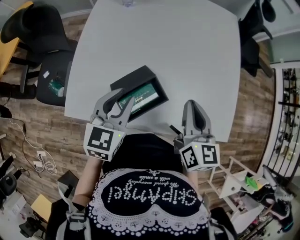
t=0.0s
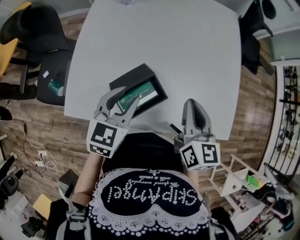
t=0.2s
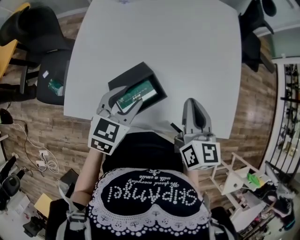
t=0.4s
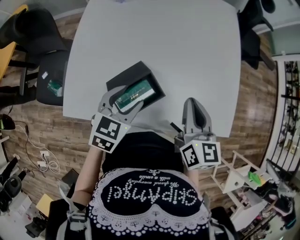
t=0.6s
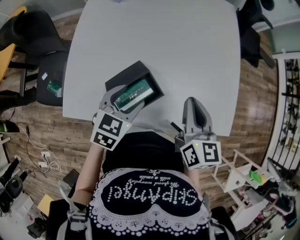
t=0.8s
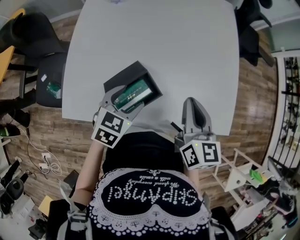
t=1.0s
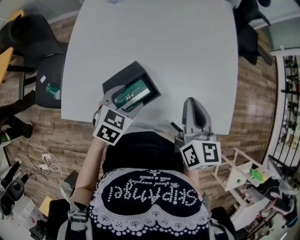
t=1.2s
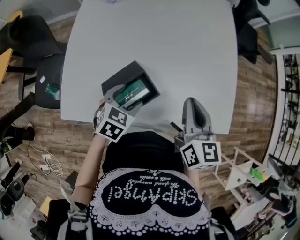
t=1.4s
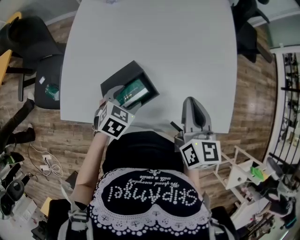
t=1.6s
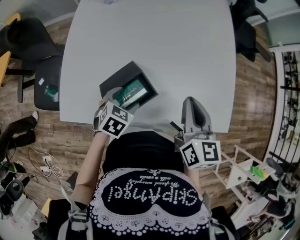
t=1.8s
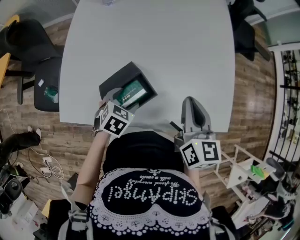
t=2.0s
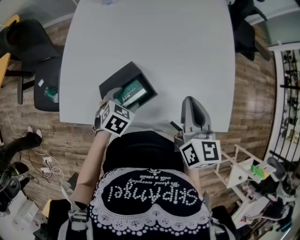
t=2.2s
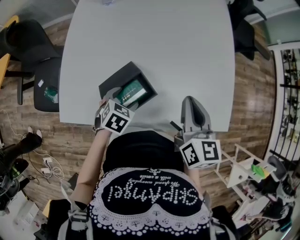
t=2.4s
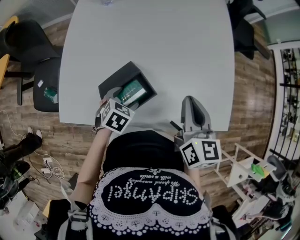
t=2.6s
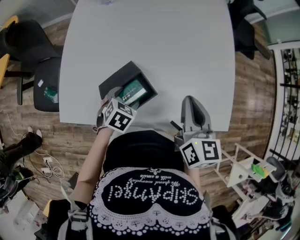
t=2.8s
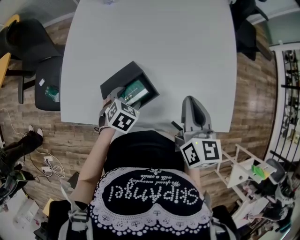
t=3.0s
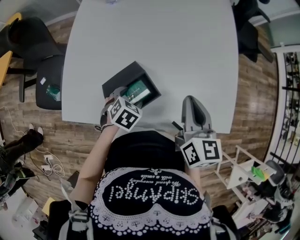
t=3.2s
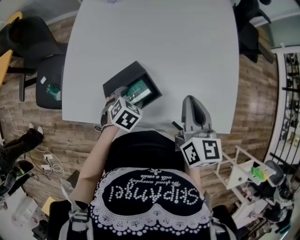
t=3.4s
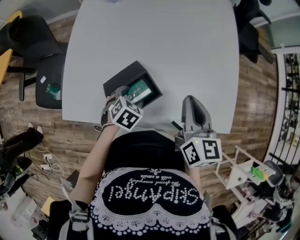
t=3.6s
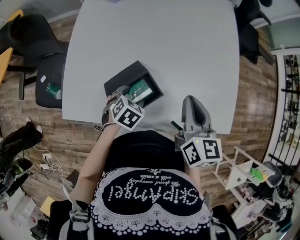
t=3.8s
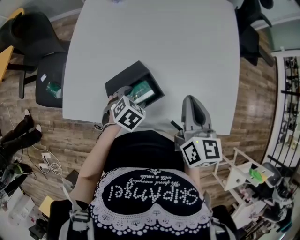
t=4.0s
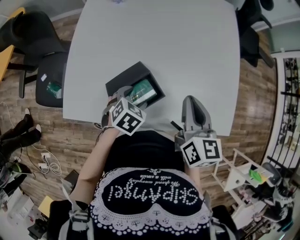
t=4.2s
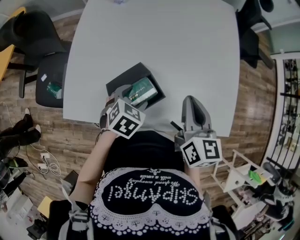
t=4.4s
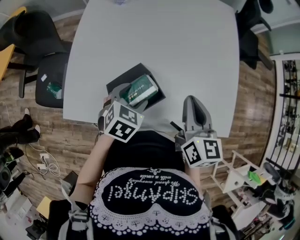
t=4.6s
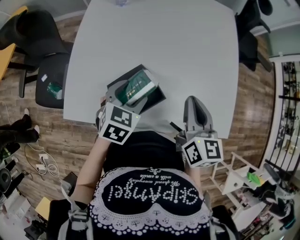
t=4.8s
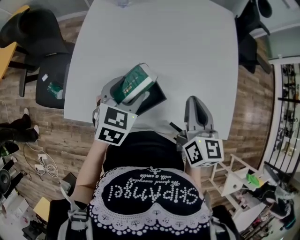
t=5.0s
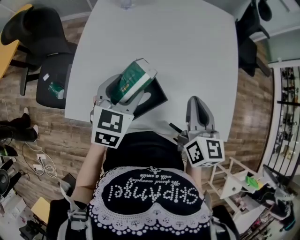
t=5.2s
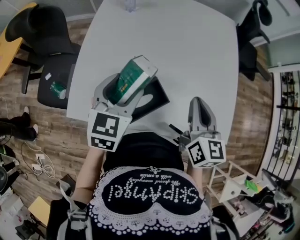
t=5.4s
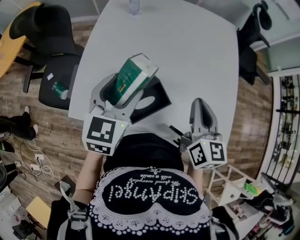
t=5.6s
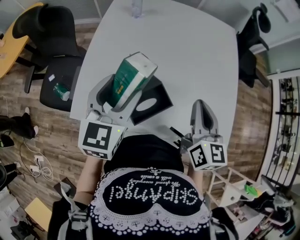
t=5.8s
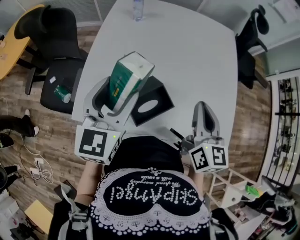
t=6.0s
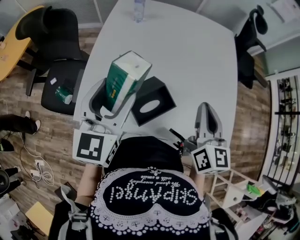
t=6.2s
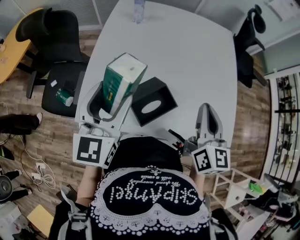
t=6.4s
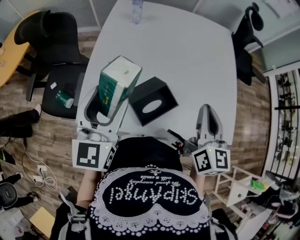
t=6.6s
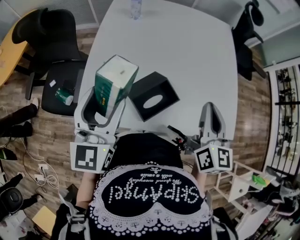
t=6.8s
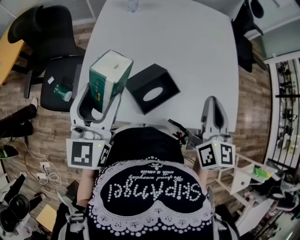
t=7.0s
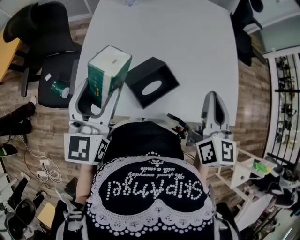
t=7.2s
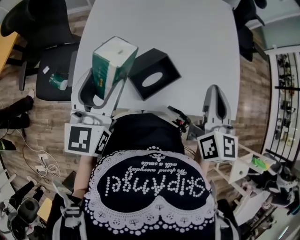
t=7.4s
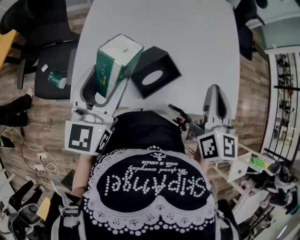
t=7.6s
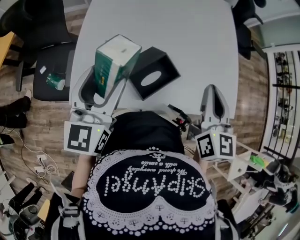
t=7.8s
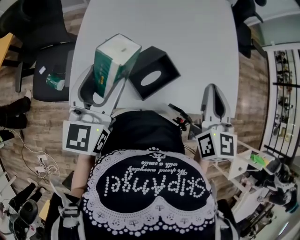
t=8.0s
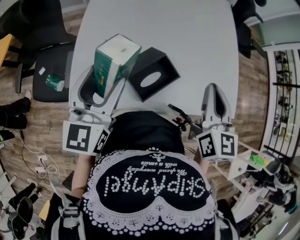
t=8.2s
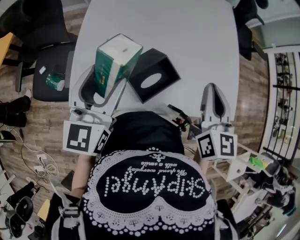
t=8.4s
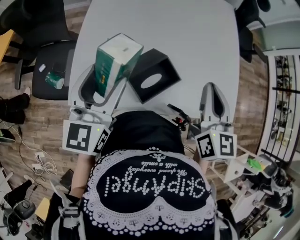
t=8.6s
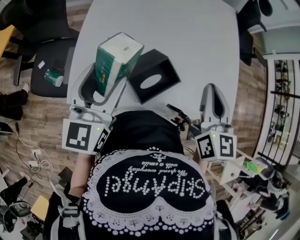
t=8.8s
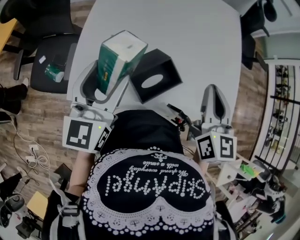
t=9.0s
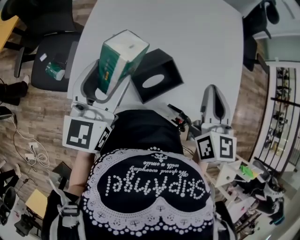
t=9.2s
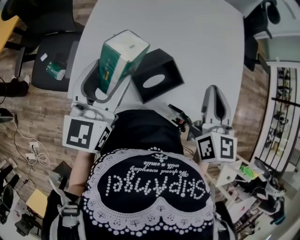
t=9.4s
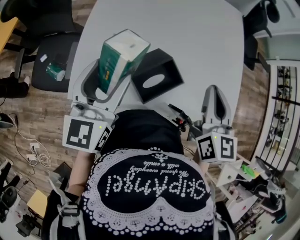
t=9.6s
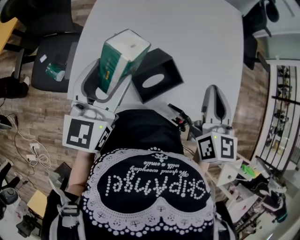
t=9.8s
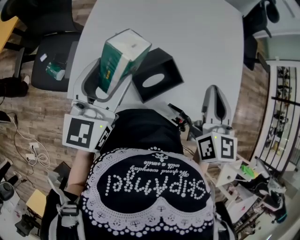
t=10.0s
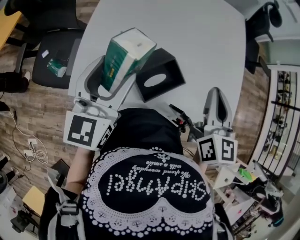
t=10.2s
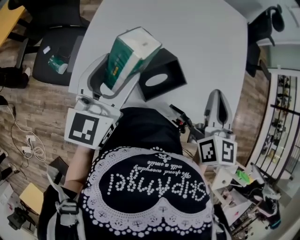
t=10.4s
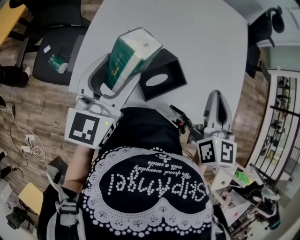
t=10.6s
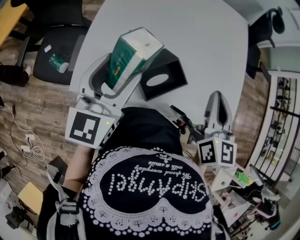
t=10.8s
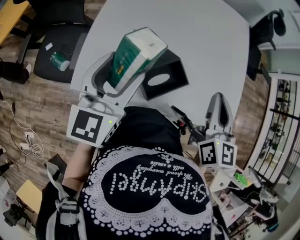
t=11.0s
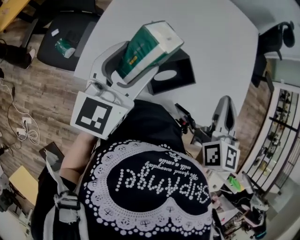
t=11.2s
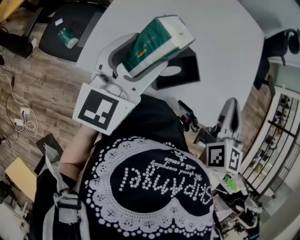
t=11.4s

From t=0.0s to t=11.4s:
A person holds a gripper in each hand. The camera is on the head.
From t=0.0s to t=1.4s: The left gripper shifts about 15 cm downward and to the right, rotates approximately 30 degrees, and opens up.
From t=1.4s to t=2.8s: The left gripper shifts about 5 cm downward.
From t=2.8s to t=4.2s: The grippers make only small movements.
From t=4.2s to t=5.6s: The left gripper shifts some 20 cm upward, and angles its fingers upward, by some 40 degrees.
From t=5.6s to t=7.2s: The left gripper moves to the left and backward, about 15 cm, while the right gripper moves backward, about 5 cm.
From t=7.2s to t=10.0s: The grippers make only small movements.
From t=10.0s to t=11.4s: Neither gripper changes place.

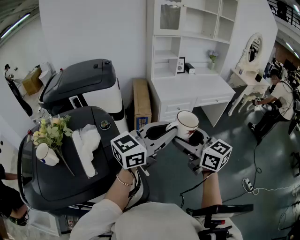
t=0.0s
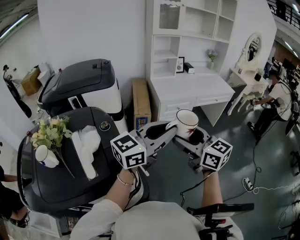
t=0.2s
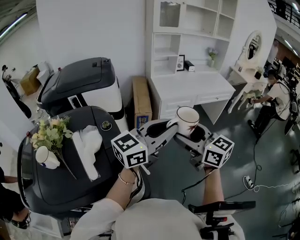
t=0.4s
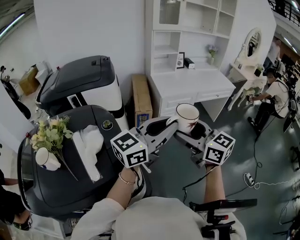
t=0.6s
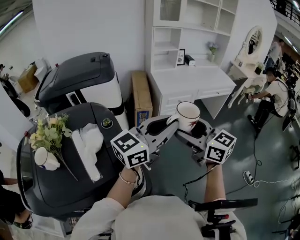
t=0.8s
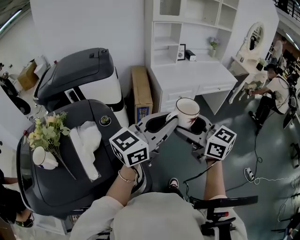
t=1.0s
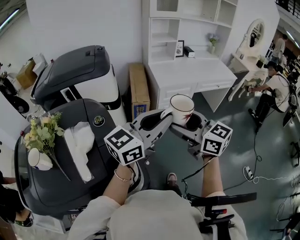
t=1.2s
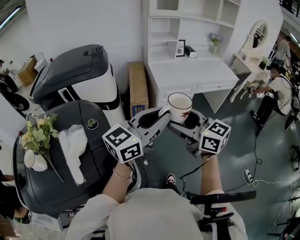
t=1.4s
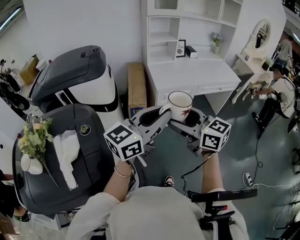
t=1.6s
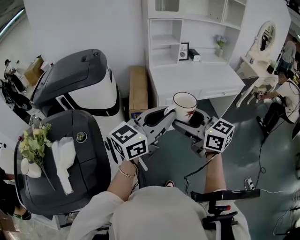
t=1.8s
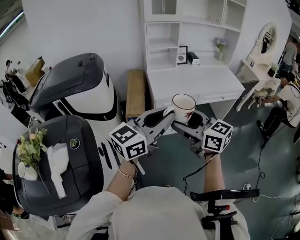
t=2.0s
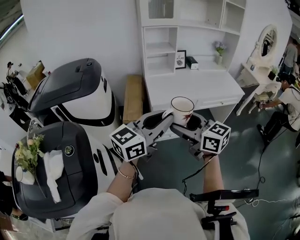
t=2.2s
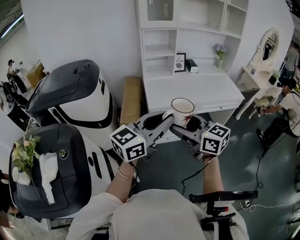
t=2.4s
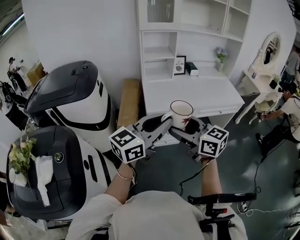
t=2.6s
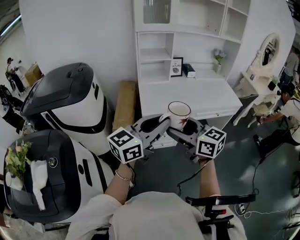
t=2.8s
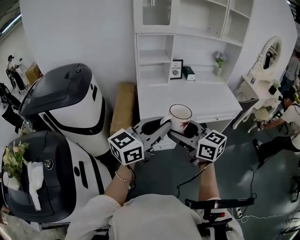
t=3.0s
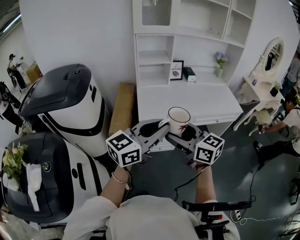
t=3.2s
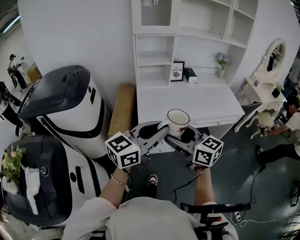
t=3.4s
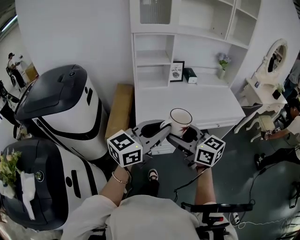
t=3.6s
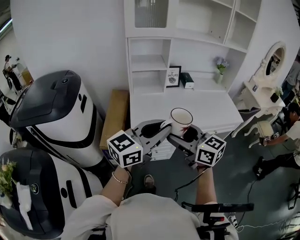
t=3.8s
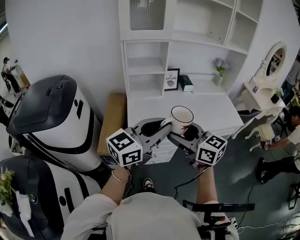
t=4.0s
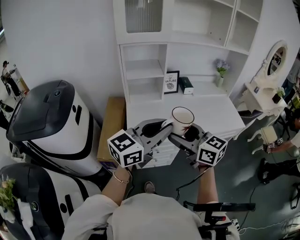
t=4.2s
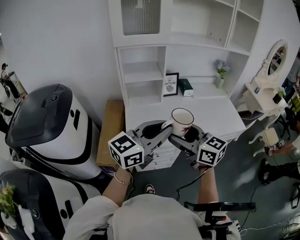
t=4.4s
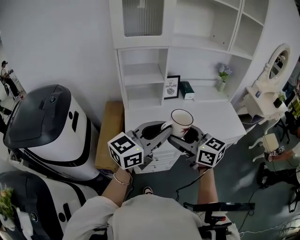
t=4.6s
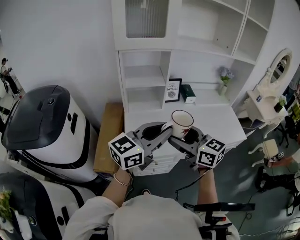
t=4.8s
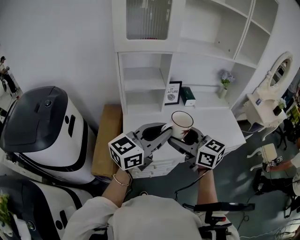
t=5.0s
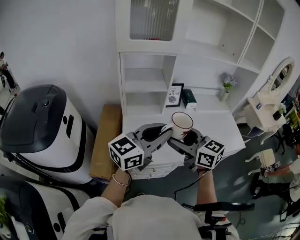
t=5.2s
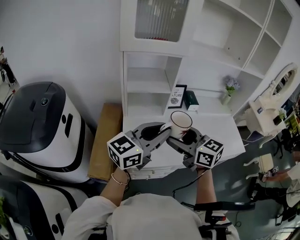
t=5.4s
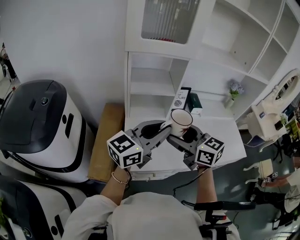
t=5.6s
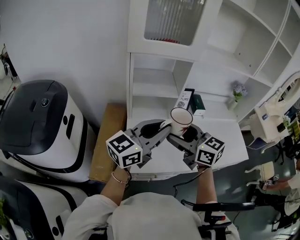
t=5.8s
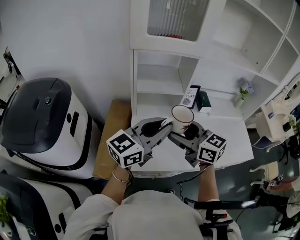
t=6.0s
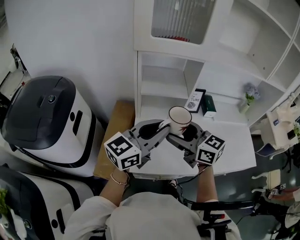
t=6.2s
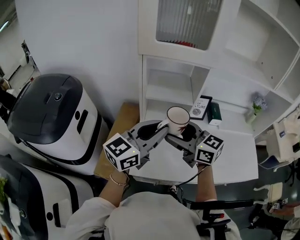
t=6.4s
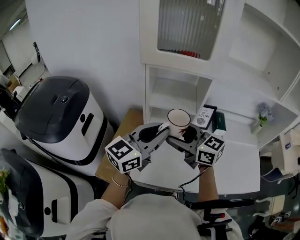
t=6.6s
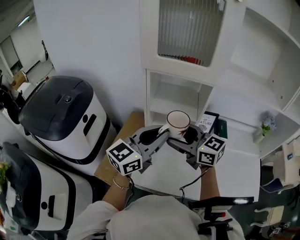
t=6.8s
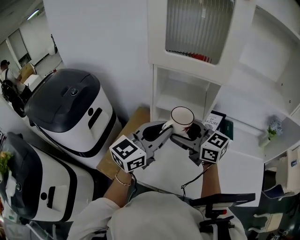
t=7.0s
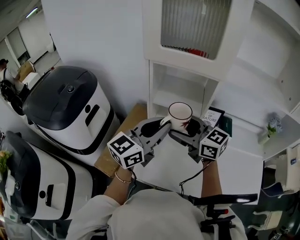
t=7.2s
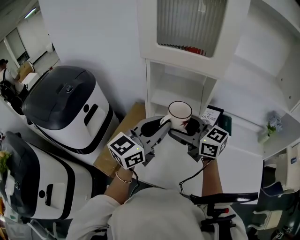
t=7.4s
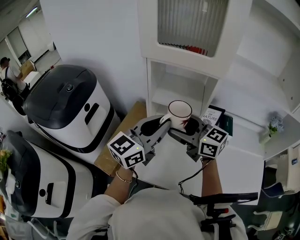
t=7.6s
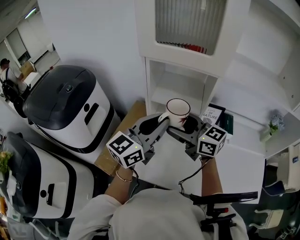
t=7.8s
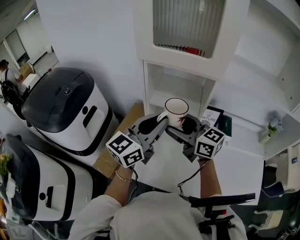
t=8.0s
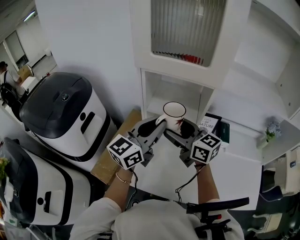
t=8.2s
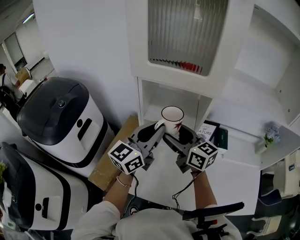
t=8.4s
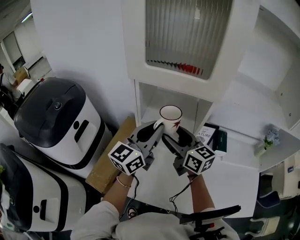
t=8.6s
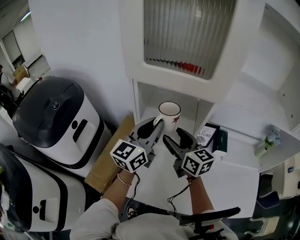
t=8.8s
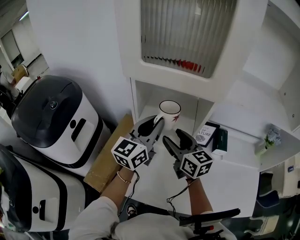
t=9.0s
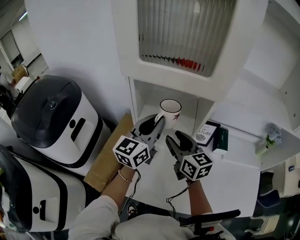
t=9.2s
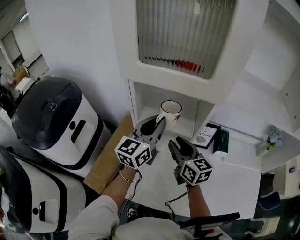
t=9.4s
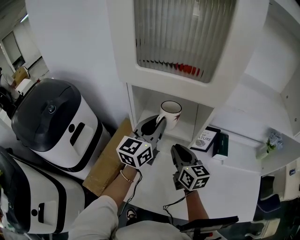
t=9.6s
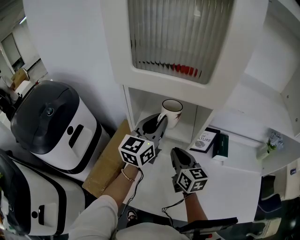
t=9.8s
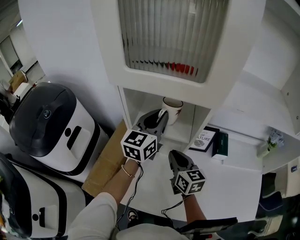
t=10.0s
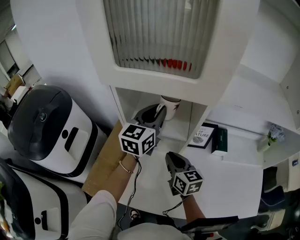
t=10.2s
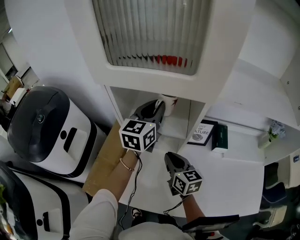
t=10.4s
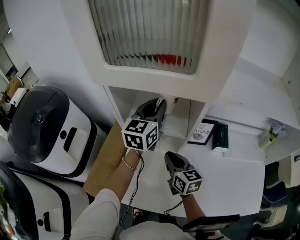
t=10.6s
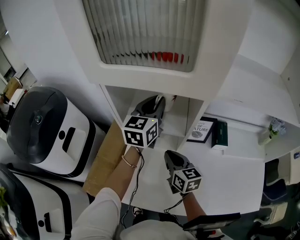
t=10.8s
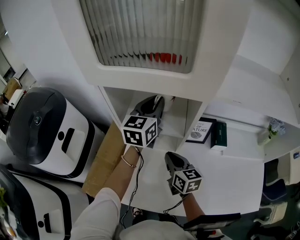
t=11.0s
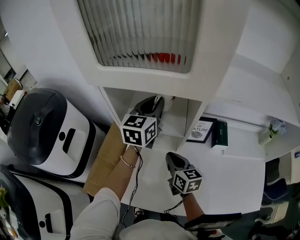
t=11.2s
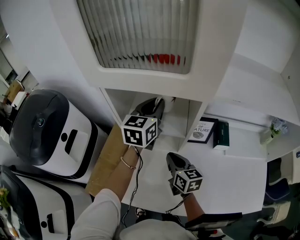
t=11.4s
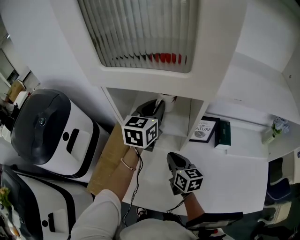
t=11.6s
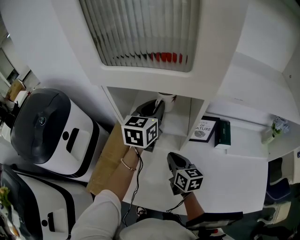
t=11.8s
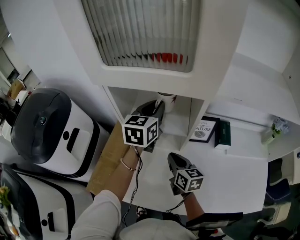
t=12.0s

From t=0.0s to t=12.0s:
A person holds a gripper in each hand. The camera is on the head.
From t=0.0s to t=1.6s: The two grippers go roughly 10 cm forward.
From t=1.6s to t=3.0s: Both grippers move forward and to the right, some 25 cm.
From t=3.0s to t=4.4s: Both grippers move forward, approximately 25 cm.
From t=4.4s to t=6.0s: The two grippers go roughly 20 cm forward and to the left.
From t=6.0s to t=7.6s: The right gripper ends up approximately 10 cm from where it was, and changes its angle by some 30 degrees. Meanwhile the left gripper changes place by about 10 cm, and turns by about 30 degrees.
From t=7.6s to t=9.0s: The right gripper shifts about 10 cm forward and downward, and rotates roughly 30 degrees. The left gripper is displaced forward by about 15 cm.
From t=9.0s to t=10.4s: The left gripper moves forward and to the right, approximately 10 cm; the right gripper heads downward, covering some 10 cm, and closes its fingers.
From t=10.4s to t=12.0s: The grippers move only a little.

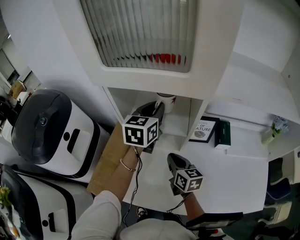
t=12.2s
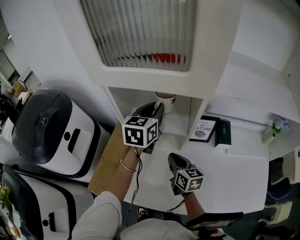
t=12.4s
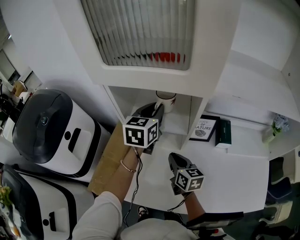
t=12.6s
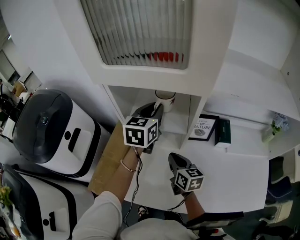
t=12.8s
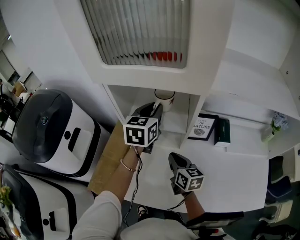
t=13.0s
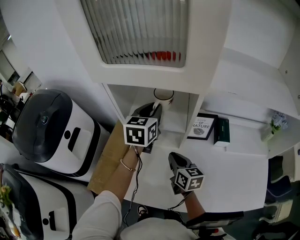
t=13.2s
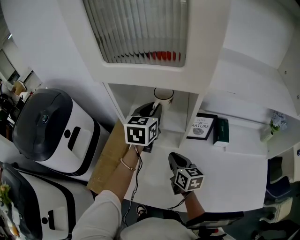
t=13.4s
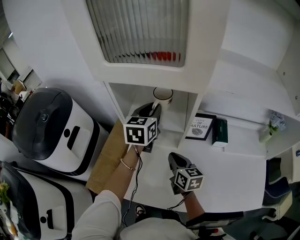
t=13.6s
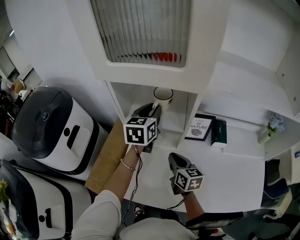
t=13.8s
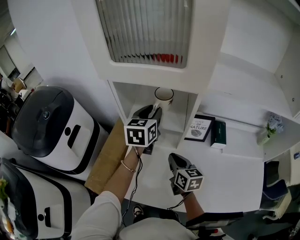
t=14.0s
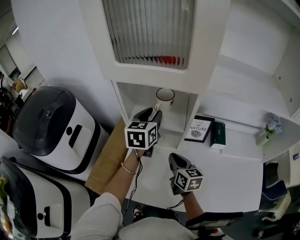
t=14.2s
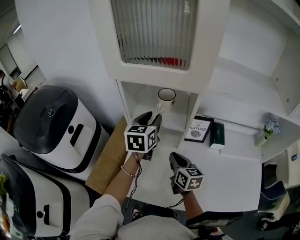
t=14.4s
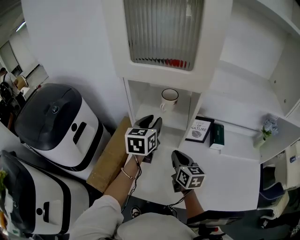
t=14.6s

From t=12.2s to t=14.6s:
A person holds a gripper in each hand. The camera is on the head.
From t=12.2s to t=13.4s: There are only small adjustments of the grippers.
From t=13.4s to t=14.6s: The left gripper travels backward by about 10 cm. Meanwhile the right gripper ends up approximately 5 cm from where it was.
